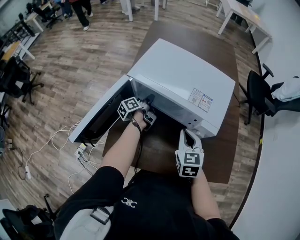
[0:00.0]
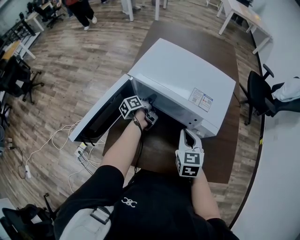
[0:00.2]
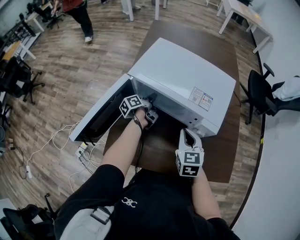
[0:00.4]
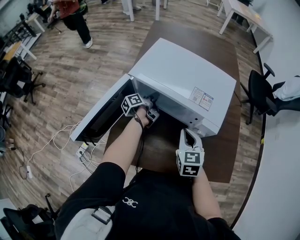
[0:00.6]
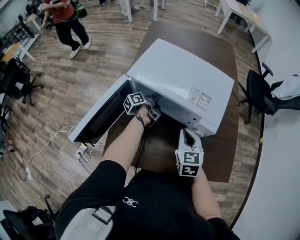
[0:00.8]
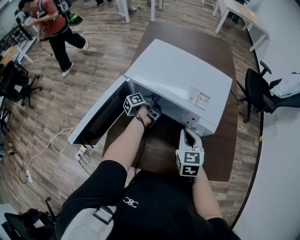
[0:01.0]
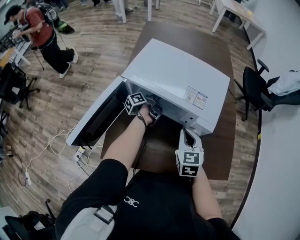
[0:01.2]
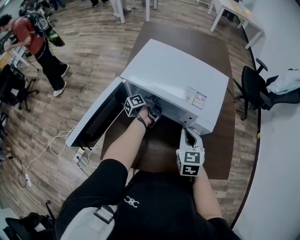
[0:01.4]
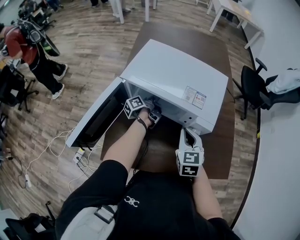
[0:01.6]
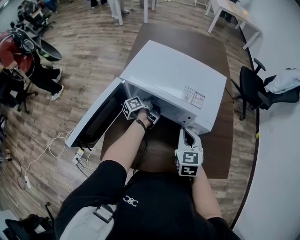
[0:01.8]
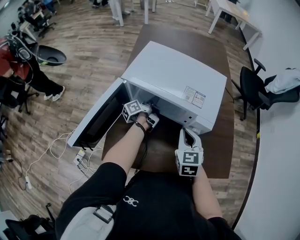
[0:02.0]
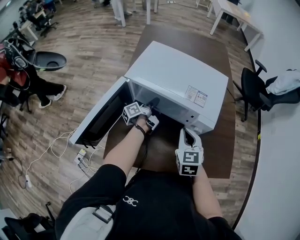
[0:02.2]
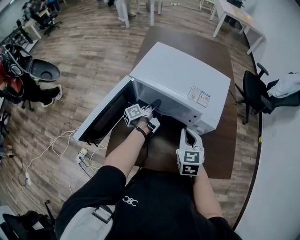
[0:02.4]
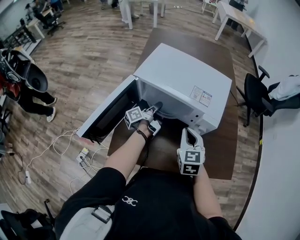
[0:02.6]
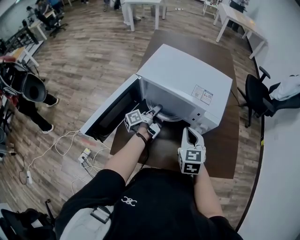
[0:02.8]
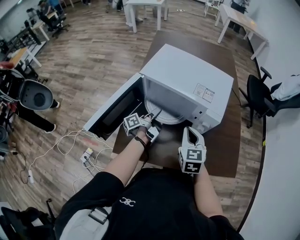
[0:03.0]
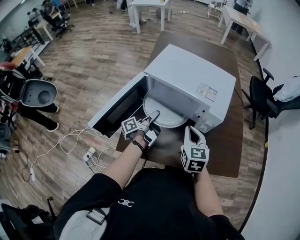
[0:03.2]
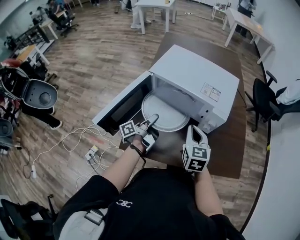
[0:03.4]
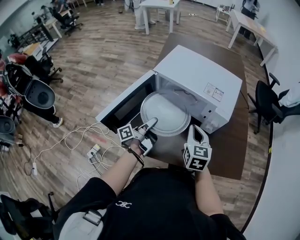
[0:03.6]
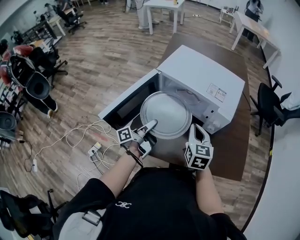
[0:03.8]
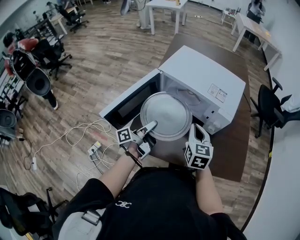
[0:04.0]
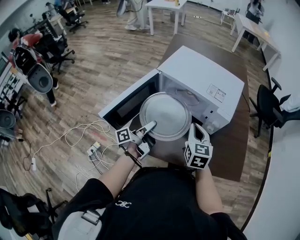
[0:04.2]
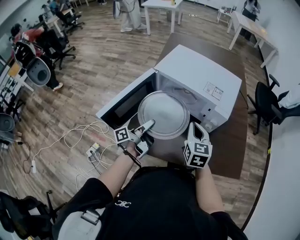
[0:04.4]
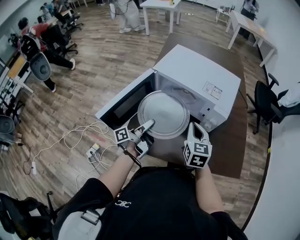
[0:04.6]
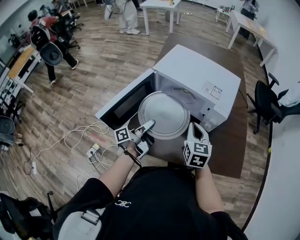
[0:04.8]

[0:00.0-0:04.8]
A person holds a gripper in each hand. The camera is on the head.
0:00.0 to 0:01.6: The left gripper travels to the right by approximately 5 cm.
0:01.6 to 0:03.2: The right gripper goes some 5 cm backward, while the left gripper heads backward, covering roughly 20 cm.
0:03.2 to 0:04.8: The left gripper shifts roughly 10 cm backward.

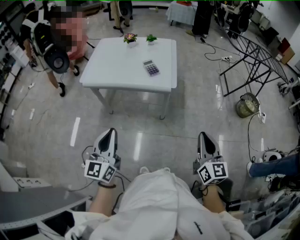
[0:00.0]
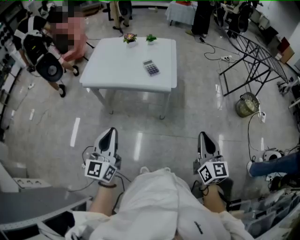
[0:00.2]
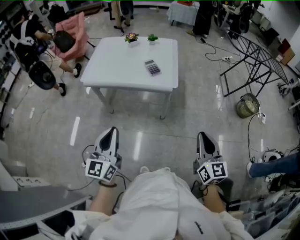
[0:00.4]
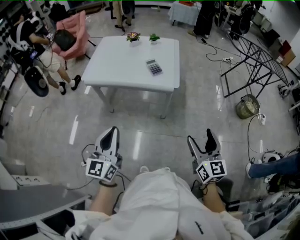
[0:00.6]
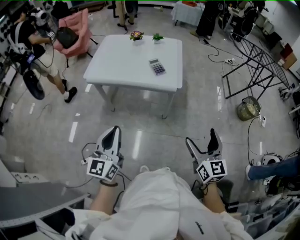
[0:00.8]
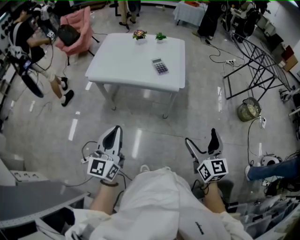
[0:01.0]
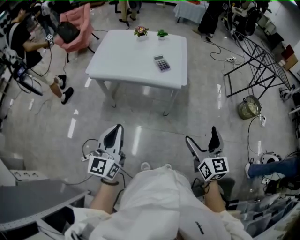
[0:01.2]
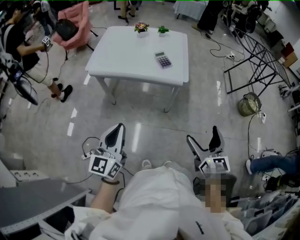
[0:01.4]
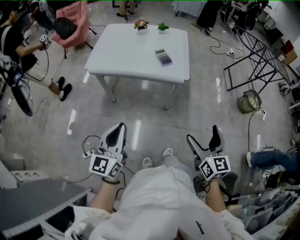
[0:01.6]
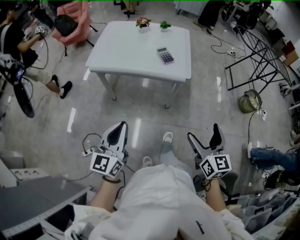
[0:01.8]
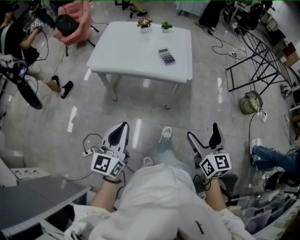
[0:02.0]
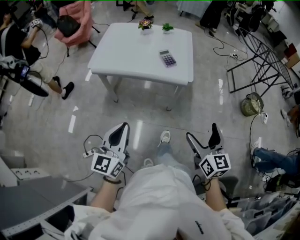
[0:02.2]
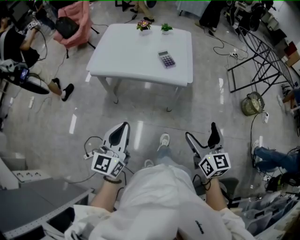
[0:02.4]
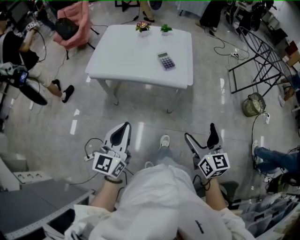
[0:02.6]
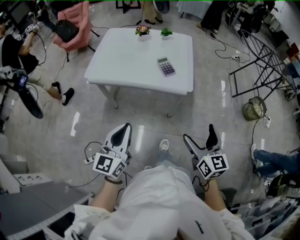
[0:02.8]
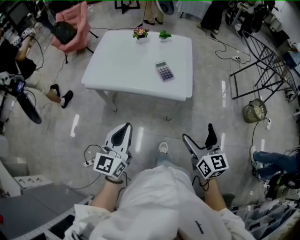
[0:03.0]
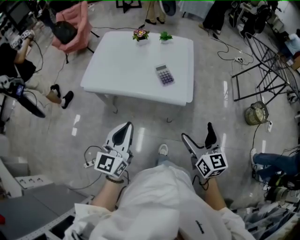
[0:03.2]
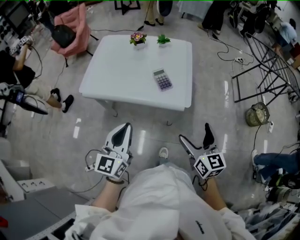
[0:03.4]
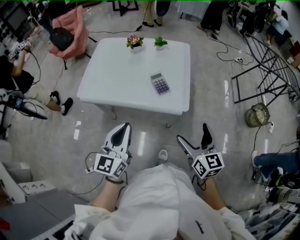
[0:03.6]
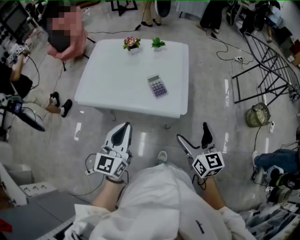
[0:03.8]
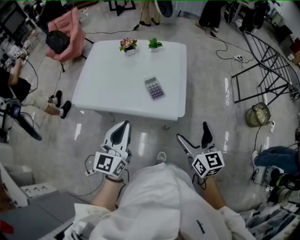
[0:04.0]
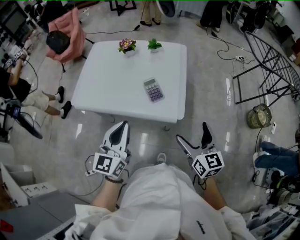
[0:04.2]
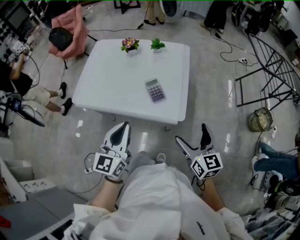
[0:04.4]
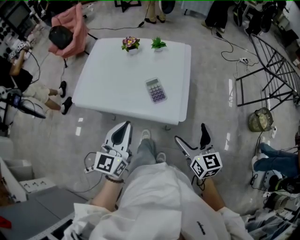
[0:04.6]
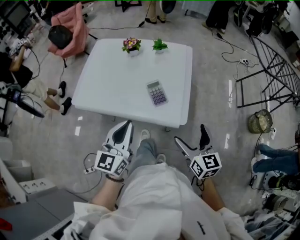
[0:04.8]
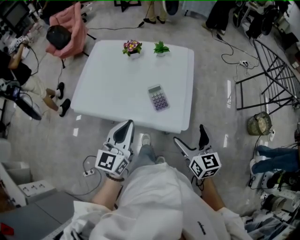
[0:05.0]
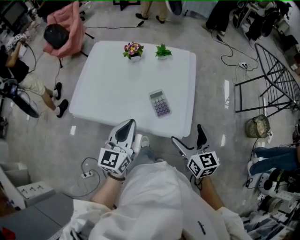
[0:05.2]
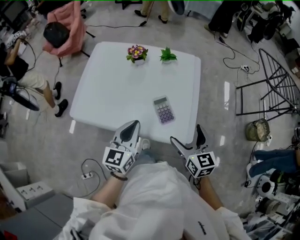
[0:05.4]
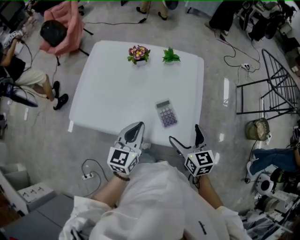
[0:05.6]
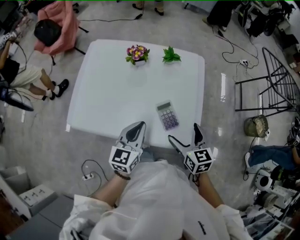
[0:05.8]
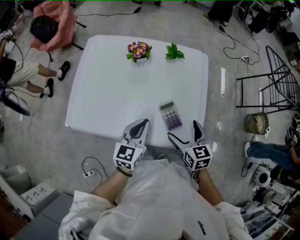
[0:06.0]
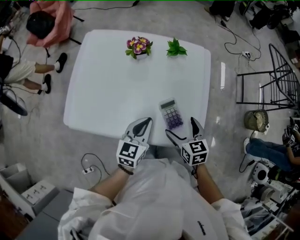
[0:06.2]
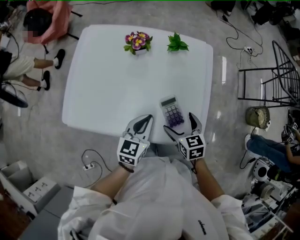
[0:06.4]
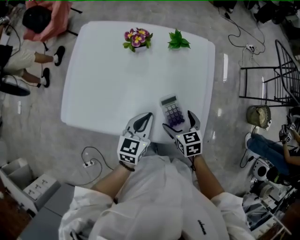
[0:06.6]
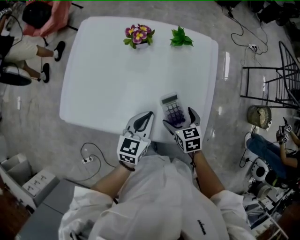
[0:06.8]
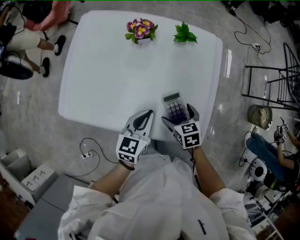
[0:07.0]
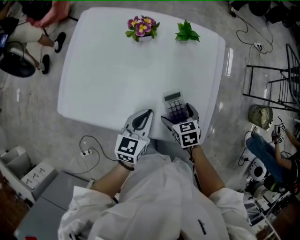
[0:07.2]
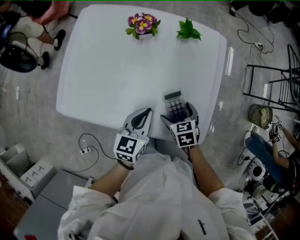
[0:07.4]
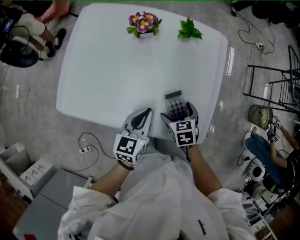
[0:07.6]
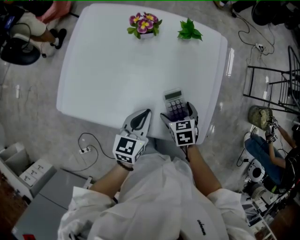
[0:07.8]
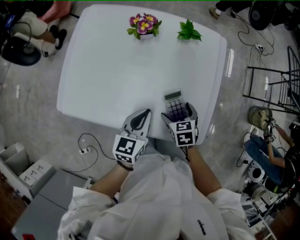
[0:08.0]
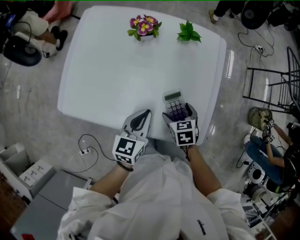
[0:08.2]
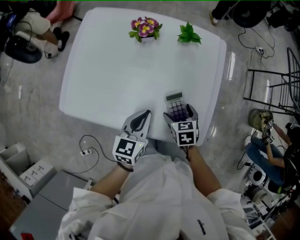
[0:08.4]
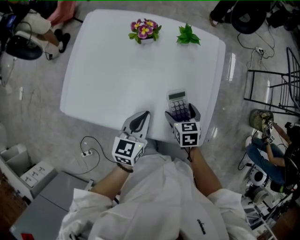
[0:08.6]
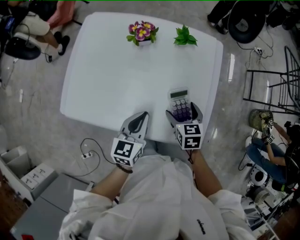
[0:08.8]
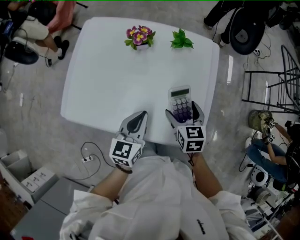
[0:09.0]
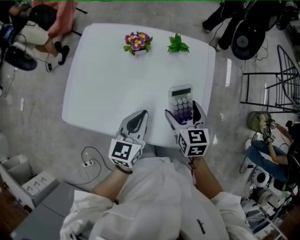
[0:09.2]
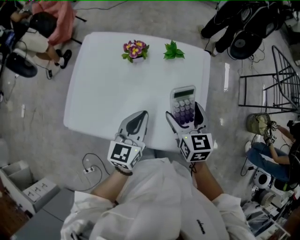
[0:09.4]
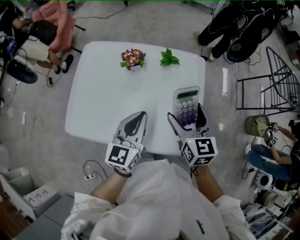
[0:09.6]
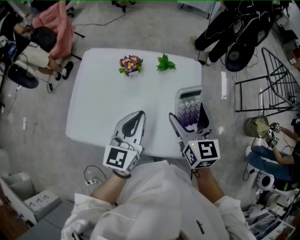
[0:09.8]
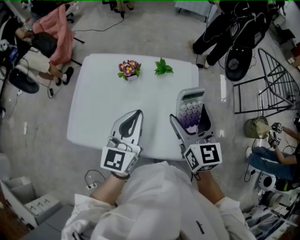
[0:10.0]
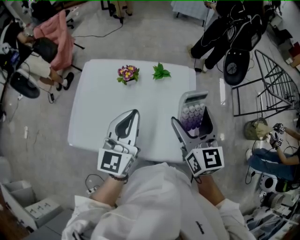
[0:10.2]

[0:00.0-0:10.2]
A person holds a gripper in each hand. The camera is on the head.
0:00.0 to 0:01.4: The right gripper travels to the left by some 10 cm, and opens its fingers; the left gripper moves some 5 cm.
0:01.4 to 0:03.0: Both grippers travel together forward, roughly 15 cm.
0:03.0 to 0:04.4: The right gripper heads forward, covering roughly 15 cm. The left gripper shifts about 20 cm forward and to the right.
0:04.4 to 0:05.8: The left gripper is displaced forward and downward by roughly 25 cm; the right gripper is displaced forward and to the left by some 25 cm.
0:05.8 to 0:07.2: The right gripper heads downward, covering roughly 15 cm, and swivels roughly 30 degrees. Meanwhile the left gripper moves downward, about 10 cm.
0:07.2 to 0:08.8: The right gripper moves roughly 5 cm.
0:08.8 to 0:10.2: The grippers both shift upward by some 30 cm. The left gripper rotates some 30 degrees. The right gripper points its fingers roughly 40 degrees further upward.

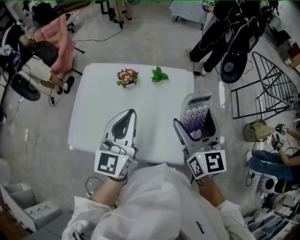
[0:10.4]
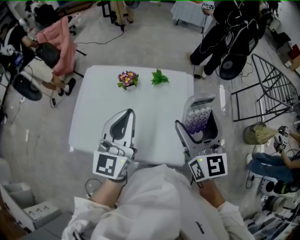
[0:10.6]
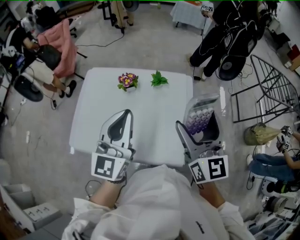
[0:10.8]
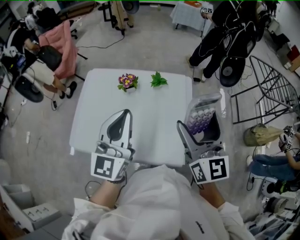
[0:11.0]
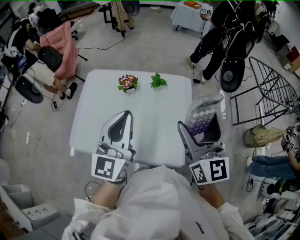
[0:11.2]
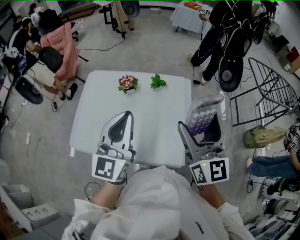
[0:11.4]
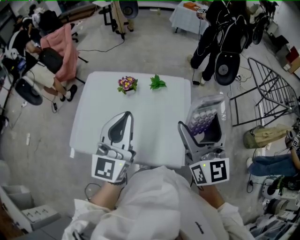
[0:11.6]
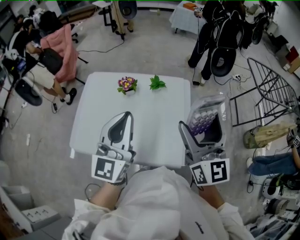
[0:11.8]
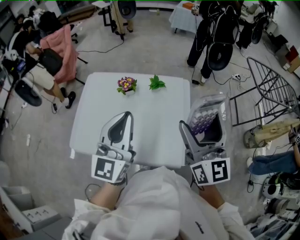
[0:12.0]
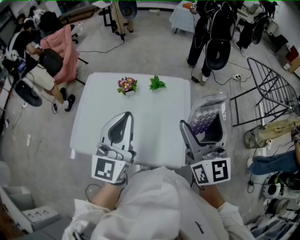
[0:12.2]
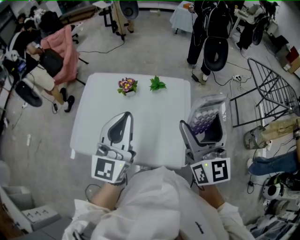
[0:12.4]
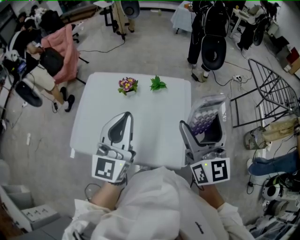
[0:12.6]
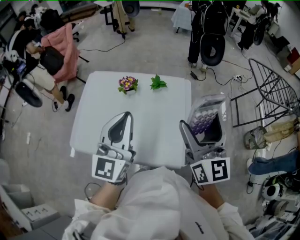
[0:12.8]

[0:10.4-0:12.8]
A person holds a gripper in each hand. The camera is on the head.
0:10.4 to 0:11.6: Both grippers travel together upward, about 5 cm.
0:11.6 to 0:12.8: Neither gripper changes place.

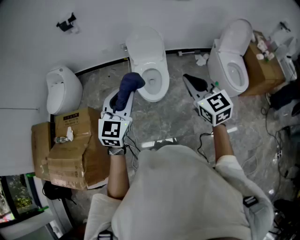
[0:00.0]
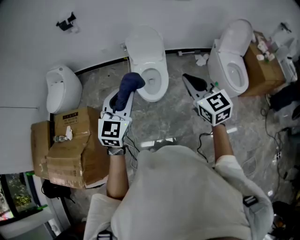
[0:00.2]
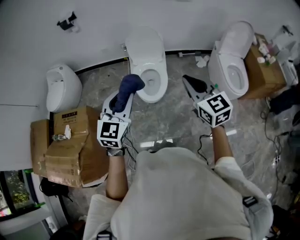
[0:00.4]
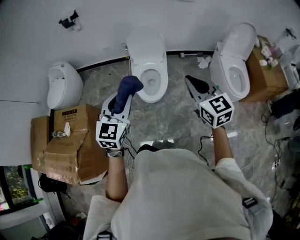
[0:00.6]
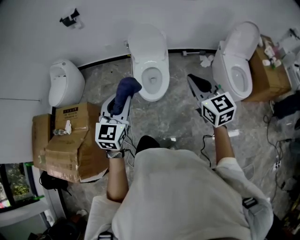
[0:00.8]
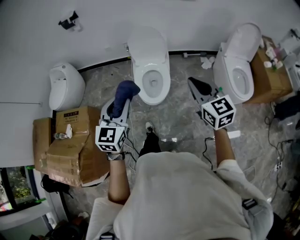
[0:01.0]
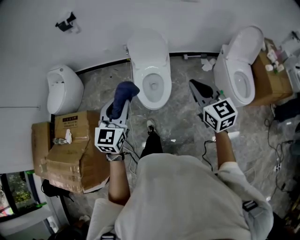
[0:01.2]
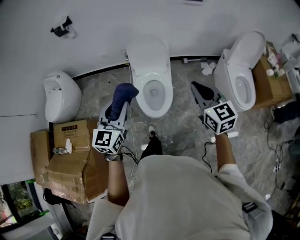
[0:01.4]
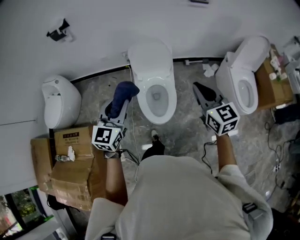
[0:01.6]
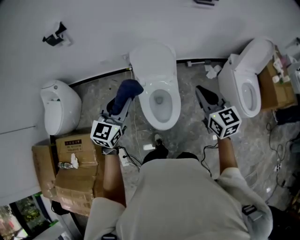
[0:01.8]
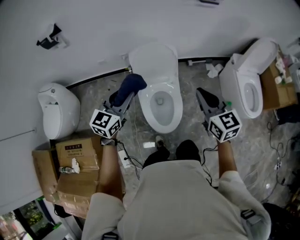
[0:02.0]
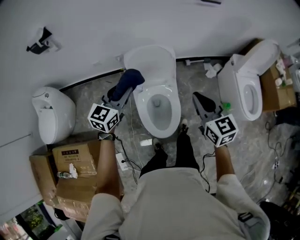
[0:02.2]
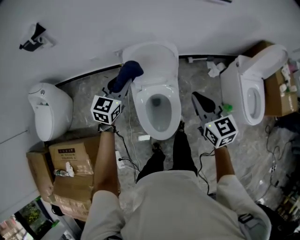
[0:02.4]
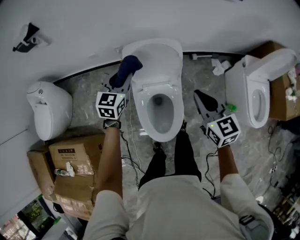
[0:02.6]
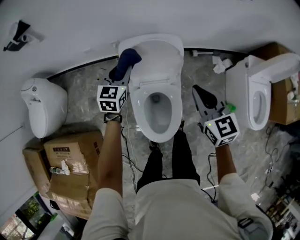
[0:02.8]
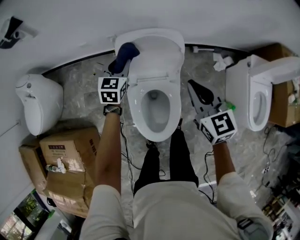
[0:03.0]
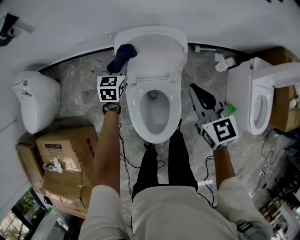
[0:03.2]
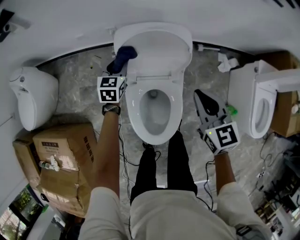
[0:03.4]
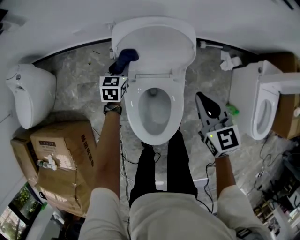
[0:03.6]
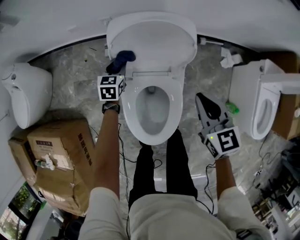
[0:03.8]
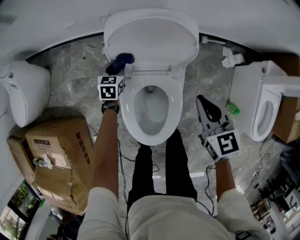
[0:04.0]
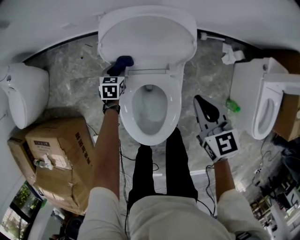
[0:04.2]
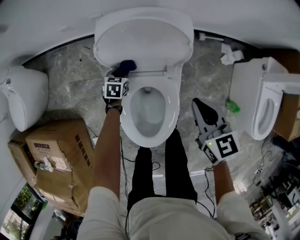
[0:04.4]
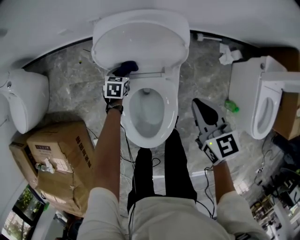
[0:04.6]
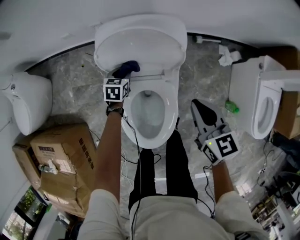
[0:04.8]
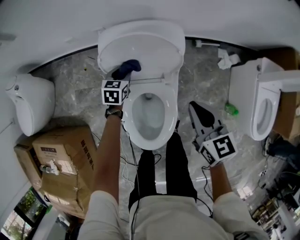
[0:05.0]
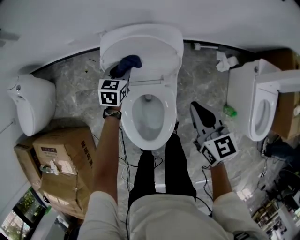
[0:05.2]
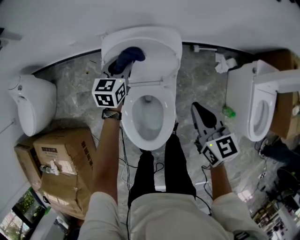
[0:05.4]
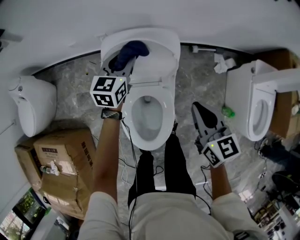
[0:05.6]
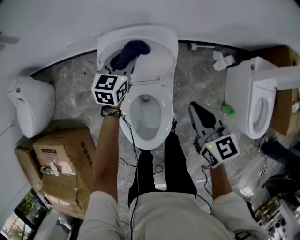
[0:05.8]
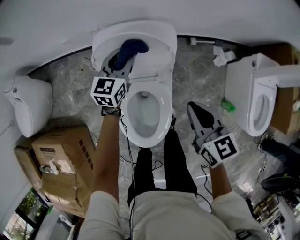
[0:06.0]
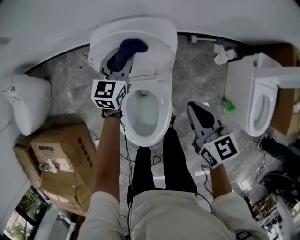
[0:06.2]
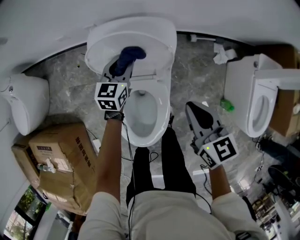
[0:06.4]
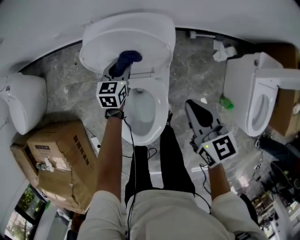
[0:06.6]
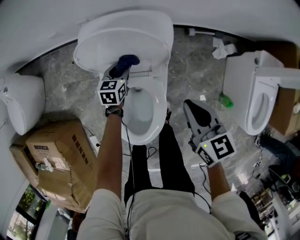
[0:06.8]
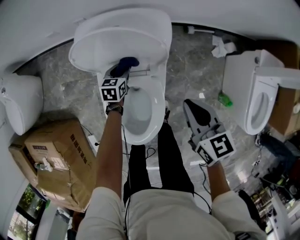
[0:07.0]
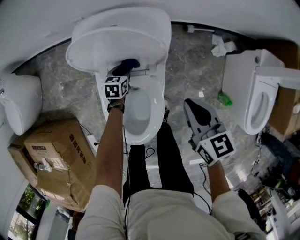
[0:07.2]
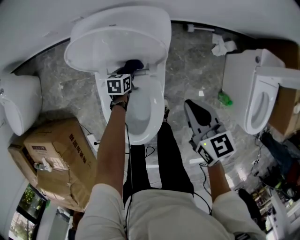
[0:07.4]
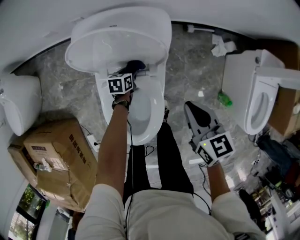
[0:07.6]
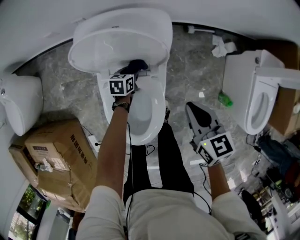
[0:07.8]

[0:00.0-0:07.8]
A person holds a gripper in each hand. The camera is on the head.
0:00.0 to 0:01.6: Both grippers travel together forward, approximately 25 cm.
0:01.6 to 0:03.2: The left gripper moves forward and downward, approximately 50 cm, and rotates about 30 degrees; the right gripper travels forward and downward by about 35 cm.
0:03.2 to 0:04.6: The left gripper heads downward, covering approximately 25 cm, and swivels approximately 30 degrees. The right gripper heads downward, covering approximately 10 cm.
0:04.6 to 0:06.2: The left gripper moves upward, roughly 25 cm, and angles its fingers upward, by about 40 degrees.
0:06.2 to 0:07.8: The left gripper travels downward by roughly 25 cm, and angles its fingers downward, by approximately 30 degrees. Meanwhile the right gripper travels downward by approximately 5 cm.
